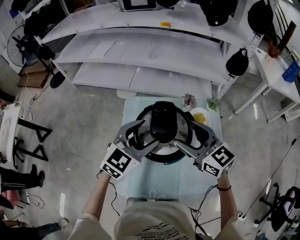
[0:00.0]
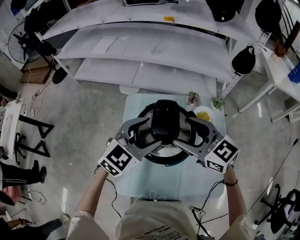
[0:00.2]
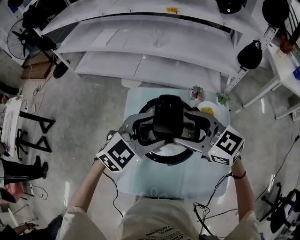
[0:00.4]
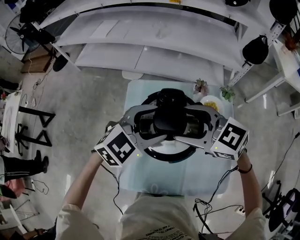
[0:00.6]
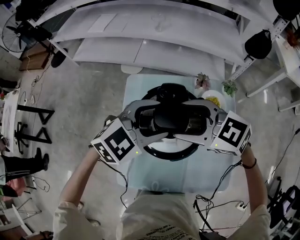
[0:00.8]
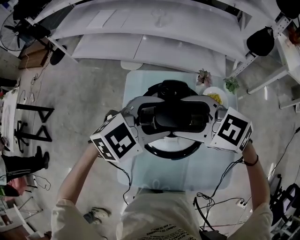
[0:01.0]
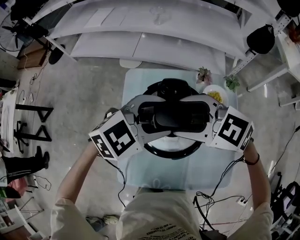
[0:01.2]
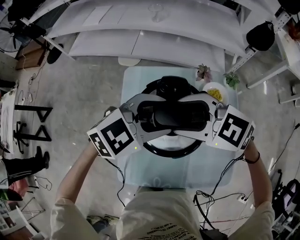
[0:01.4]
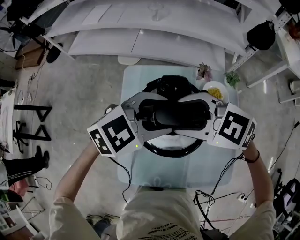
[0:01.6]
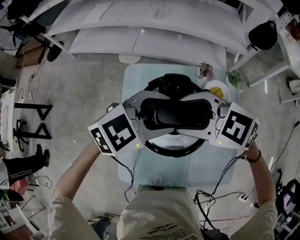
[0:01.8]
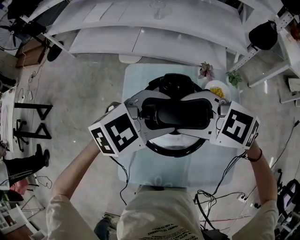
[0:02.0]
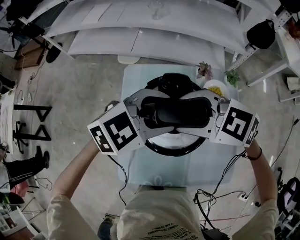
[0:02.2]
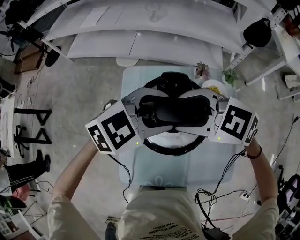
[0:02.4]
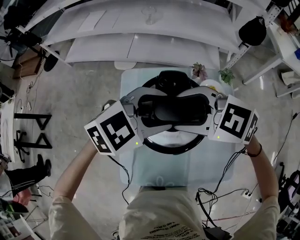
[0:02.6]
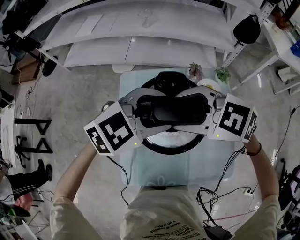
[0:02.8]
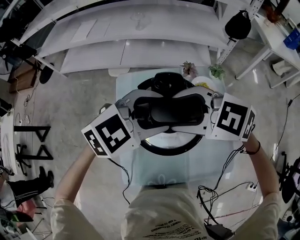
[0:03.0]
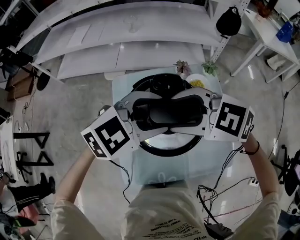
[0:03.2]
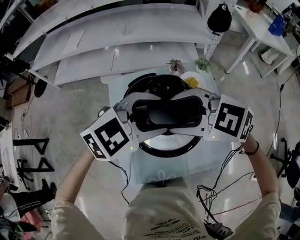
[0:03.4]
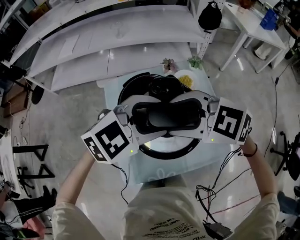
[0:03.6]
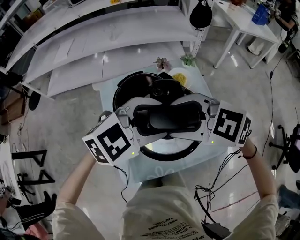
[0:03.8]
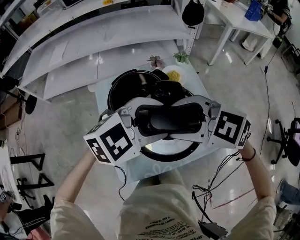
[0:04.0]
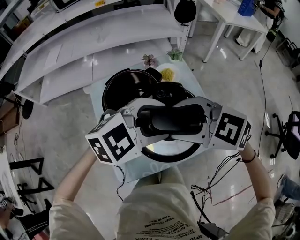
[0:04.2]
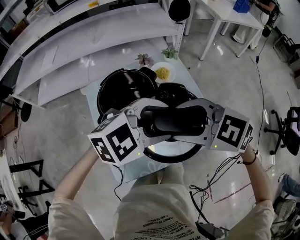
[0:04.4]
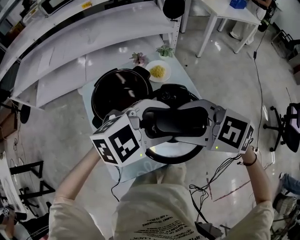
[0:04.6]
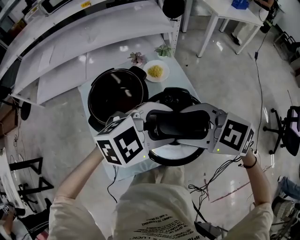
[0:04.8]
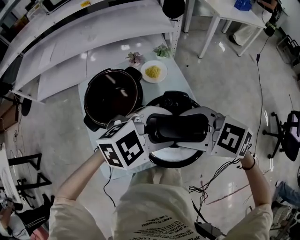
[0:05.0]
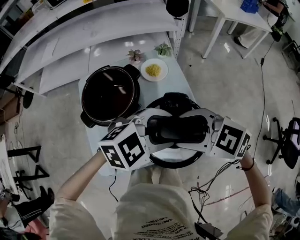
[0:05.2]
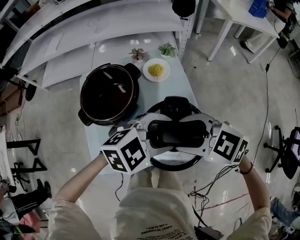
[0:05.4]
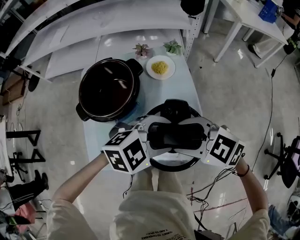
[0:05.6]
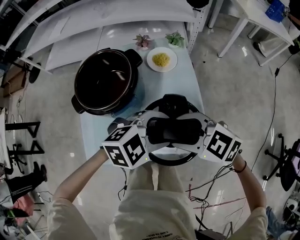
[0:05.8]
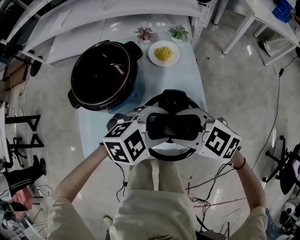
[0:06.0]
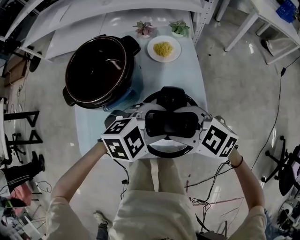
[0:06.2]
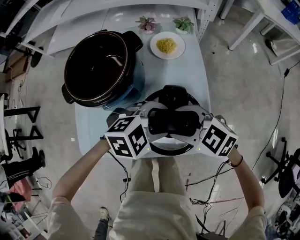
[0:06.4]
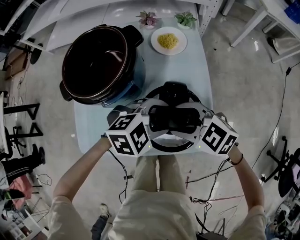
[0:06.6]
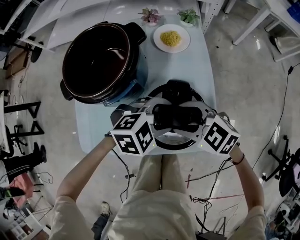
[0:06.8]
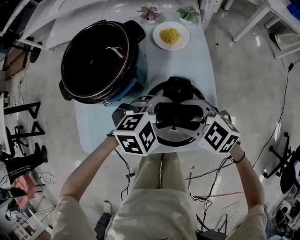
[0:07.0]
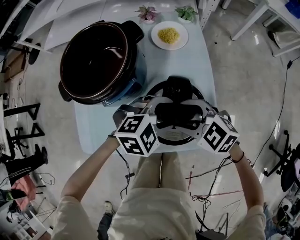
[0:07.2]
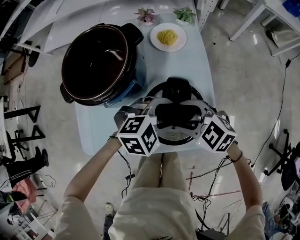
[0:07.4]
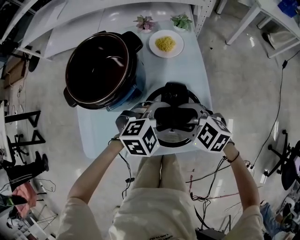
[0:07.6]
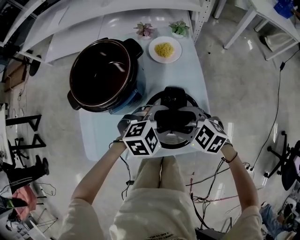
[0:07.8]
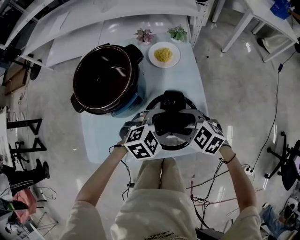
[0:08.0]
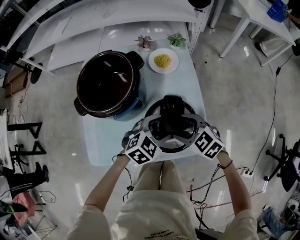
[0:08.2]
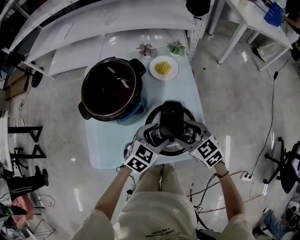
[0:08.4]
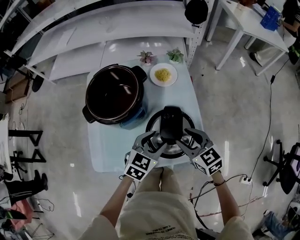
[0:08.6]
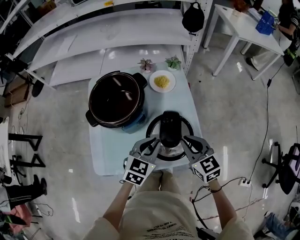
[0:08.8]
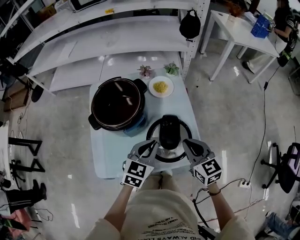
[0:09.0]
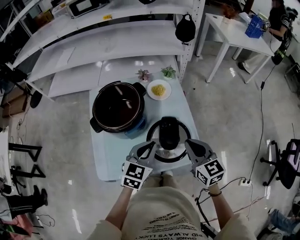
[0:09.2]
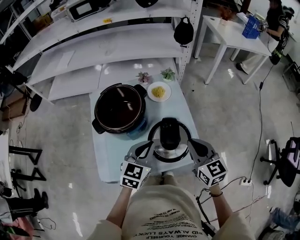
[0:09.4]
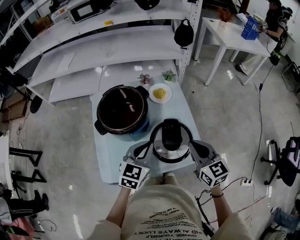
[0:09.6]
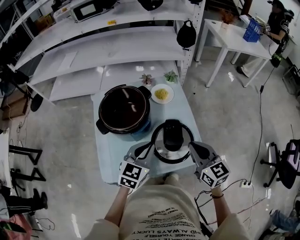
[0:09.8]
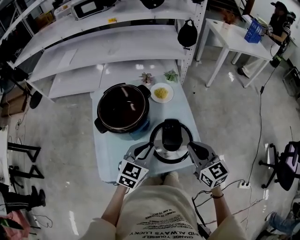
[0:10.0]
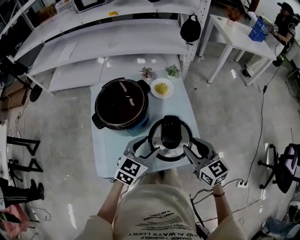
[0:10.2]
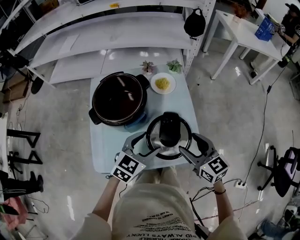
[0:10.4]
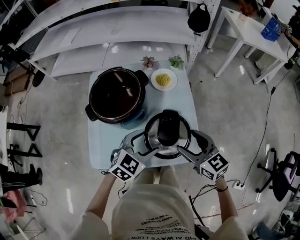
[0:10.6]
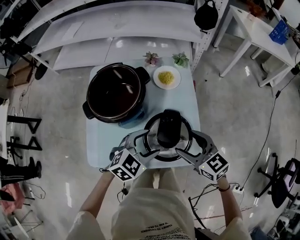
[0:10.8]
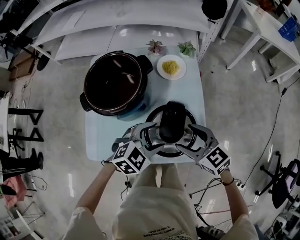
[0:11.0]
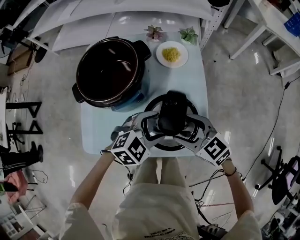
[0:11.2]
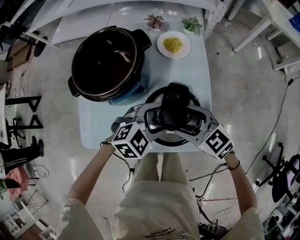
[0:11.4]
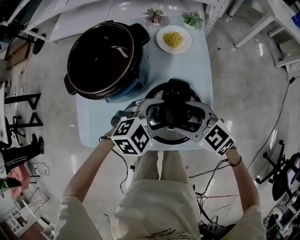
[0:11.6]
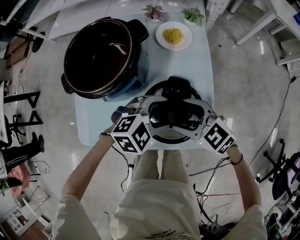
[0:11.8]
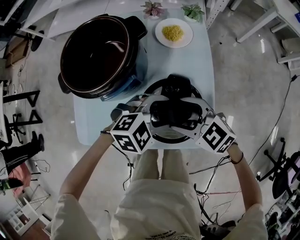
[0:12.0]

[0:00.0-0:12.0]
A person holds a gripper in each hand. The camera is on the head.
0:00.0 to 0:01.6: The left gripper shifts by some 5 cm, and swivels some 30 degrees, while the right gripper ends up roughly 10 cm from where it was, and swivels approximately 40 degrees.
0:01.6 to 0:03.0: The left gripper changes place by about 5 cm.
0:03.0 to 0:04.4: The left gripper moves about 15 cm, and swivels roughly 20 degrees. Meanwhile the right gripper changes place by about 15 cm, and turns by about 20 degrees.
0:04.4 to 0:06.0: The grippers both shift downward by about 15 cm.
0:06.0 to 0:07.6: The grippers both shift downward by about 10 cm.
0:07.6 to 0:09.0: The two grippers go roughly 10 cm upward. The left gripper changes its angle by approximately 50 degrees, and closes its fingers, while the right gripper changes its angle by about 50 degrees, and closes.
0:09.0 to 0:10.4: The left gripper opens its fingers; the right gripper opens up.
0:10.4 to 0:12.0: The two grippers go some 10 cm downward. The left gripper rotates some 30 degrees; the right gripper turns by approximately 40 degrees.

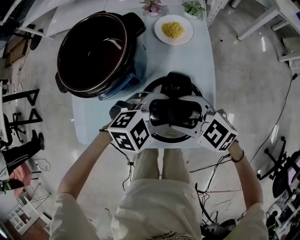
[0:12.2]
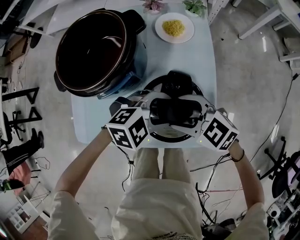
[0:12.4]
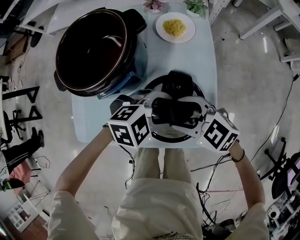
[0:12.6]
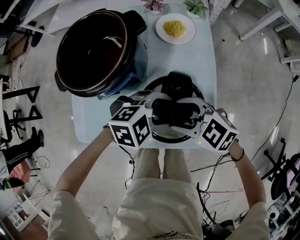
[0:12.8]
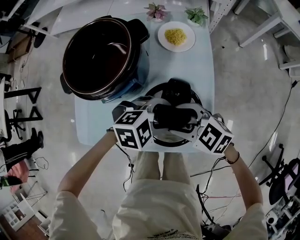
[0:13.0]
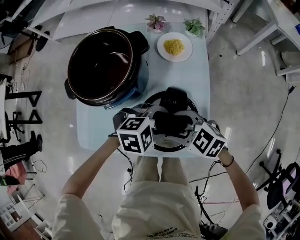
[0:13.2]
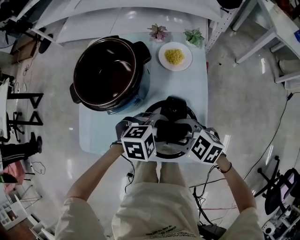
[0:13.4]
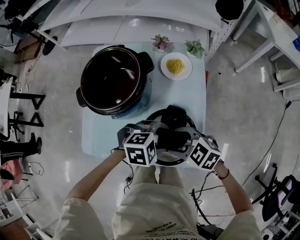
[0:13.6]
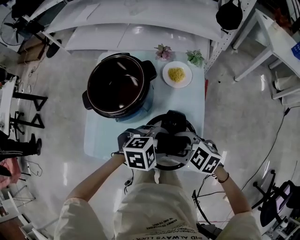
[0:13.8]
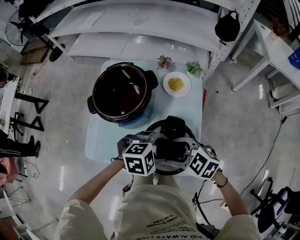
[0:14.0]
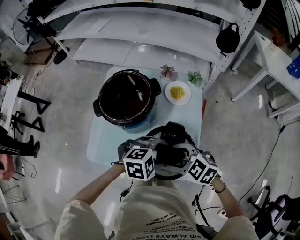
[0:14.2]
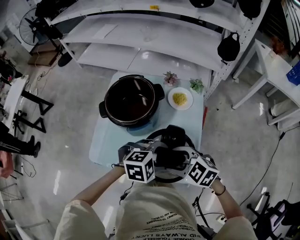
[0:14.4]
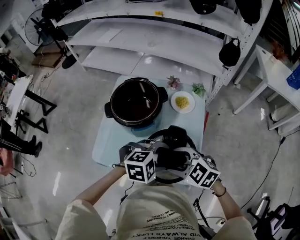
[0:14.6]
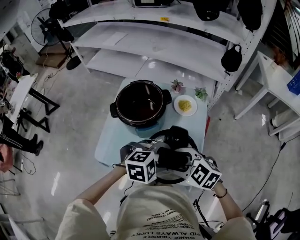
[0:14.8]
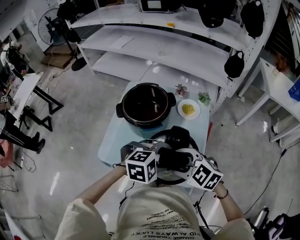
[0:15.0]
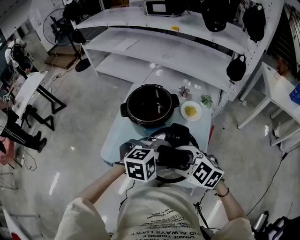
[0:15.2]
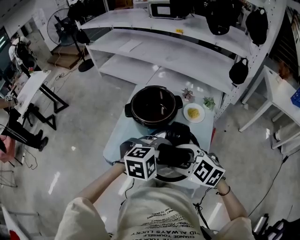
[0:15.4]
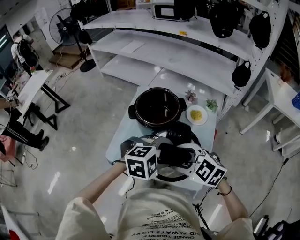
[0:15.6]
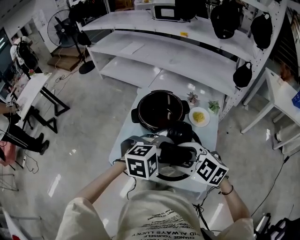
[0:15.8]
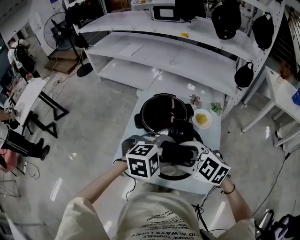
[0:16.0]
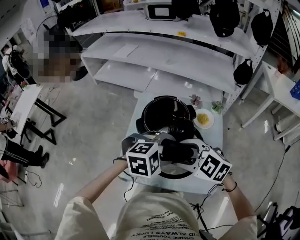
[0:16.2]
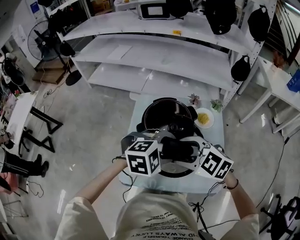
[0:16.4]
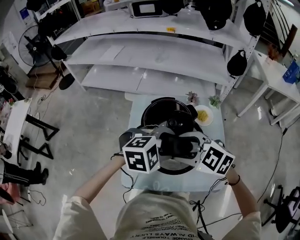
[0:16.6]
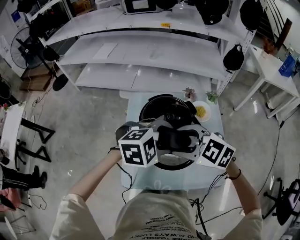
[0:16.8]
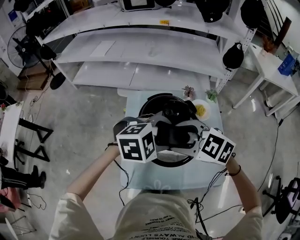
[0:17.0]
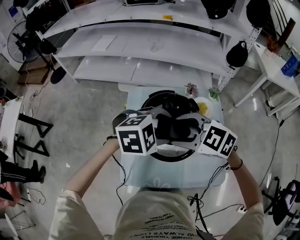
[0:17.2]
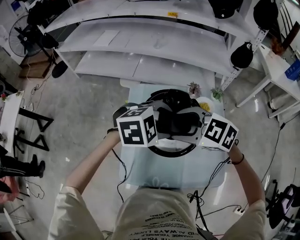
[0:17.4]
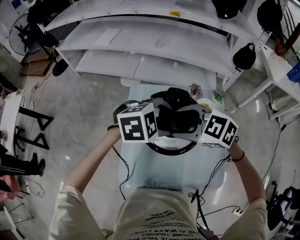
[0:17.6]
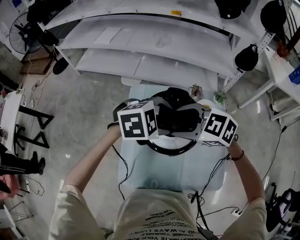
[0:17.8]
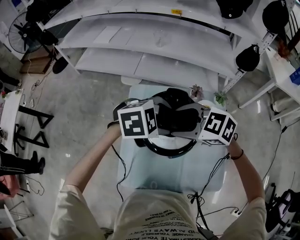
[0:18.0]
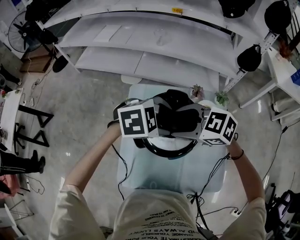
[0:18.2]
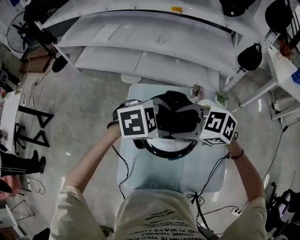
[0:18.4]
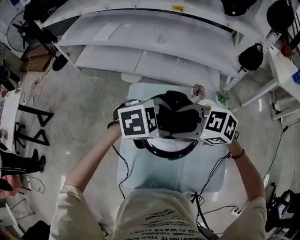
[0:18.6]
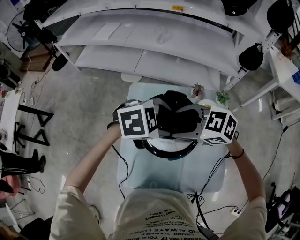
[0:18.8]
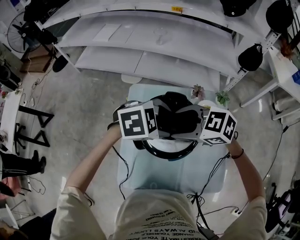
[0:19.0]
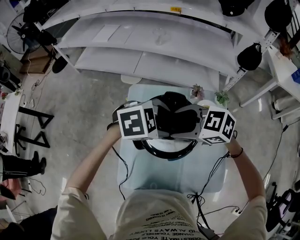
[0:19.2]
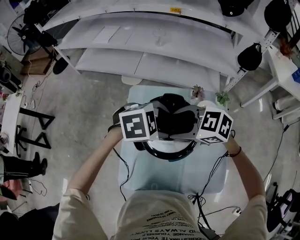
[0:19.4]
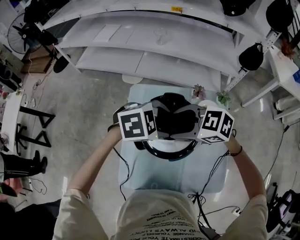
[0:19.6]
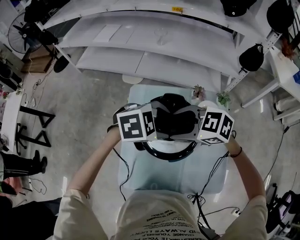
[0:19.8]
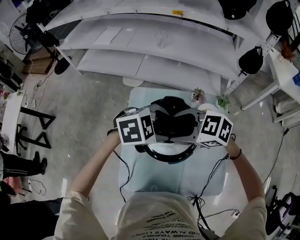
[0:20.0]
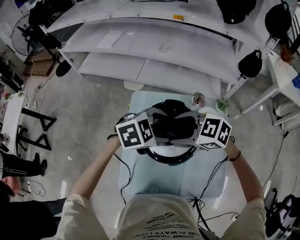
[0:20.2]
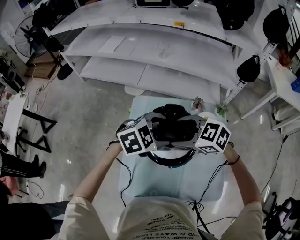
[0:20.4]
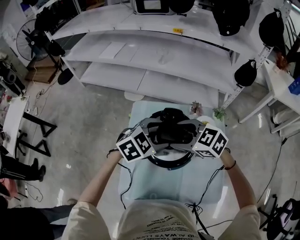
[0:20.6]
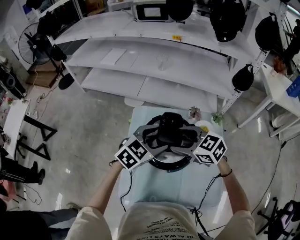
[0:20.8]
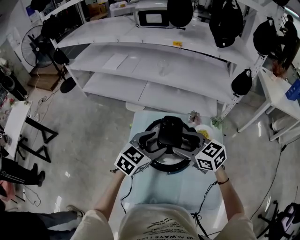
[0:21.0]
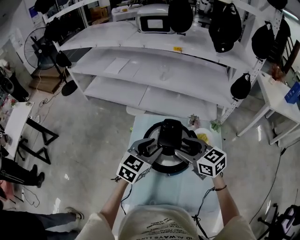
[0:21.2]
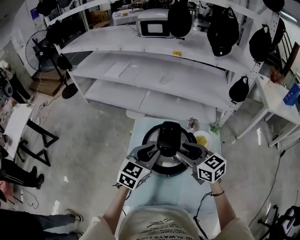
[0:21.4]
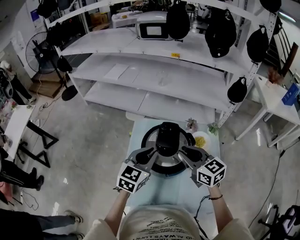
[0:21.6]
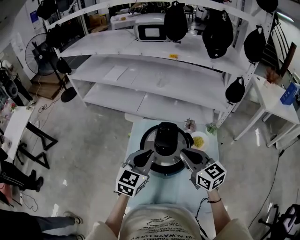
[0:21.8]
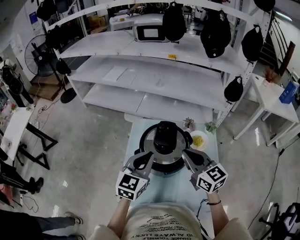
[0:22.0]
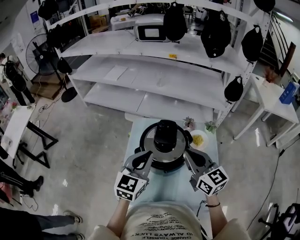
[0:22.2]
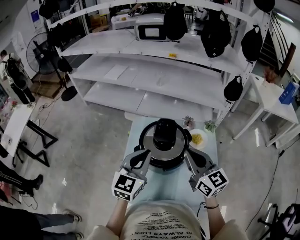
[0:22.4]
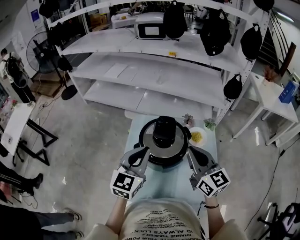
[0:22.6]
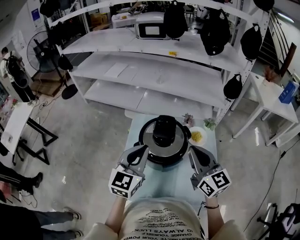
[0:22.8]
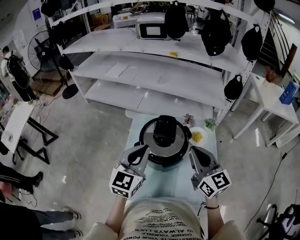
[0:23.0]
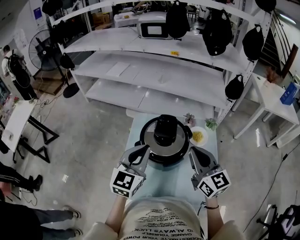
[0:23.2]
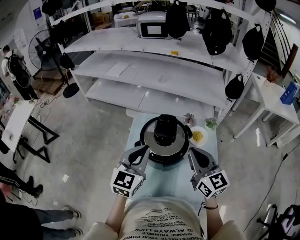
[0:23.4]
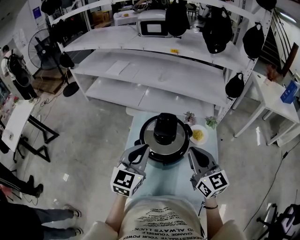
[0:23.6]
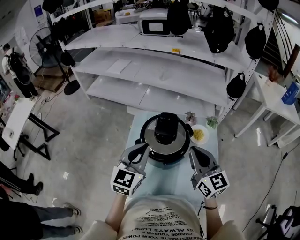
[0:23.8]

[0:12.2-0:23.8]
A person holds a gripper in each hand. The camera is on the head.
0:12.2 to 0:13.6: The grippers make only small movements.
0:13.6 to 0:15.0: The two grippers go approximately 15 cm upward.
0:15.0 to 0:16.6: The right gripper shifts by roughly 20 cm; the left gripper shifts by some 20 cm.
0:16.6 to 0:18.0: The left gripper shifts by about 15 cm. The right gripper ends up approximately 15 cm from where it was.
0:18.0 to 0:19.4: The grippers stay close to where they were, moving slightly.
0:19.4 to 0:21.0: The left gripper rotates about 50 degrees. Meanwhile the right gripper swivels some 30 degrees.
0:21.0 to 0:22.4: The two grippers go approximately 10 cm backward and upward. The left gripper turns by roughly 30 degrees, and closes. The right gripper swivels about 30 degrees, and closes its fingers.
0:22.4 to 0:23.8: The grippers move only a little.
